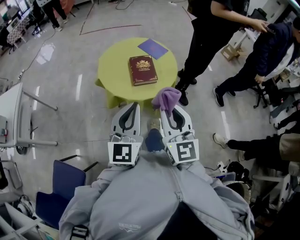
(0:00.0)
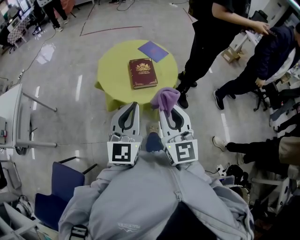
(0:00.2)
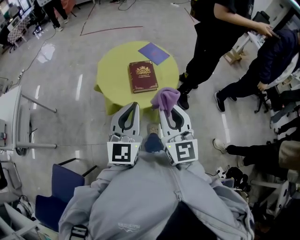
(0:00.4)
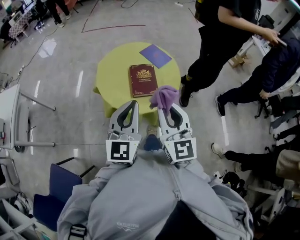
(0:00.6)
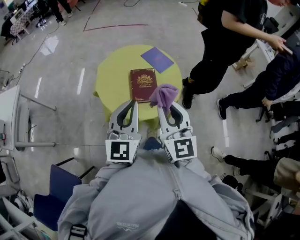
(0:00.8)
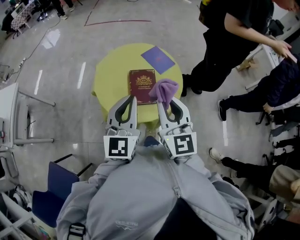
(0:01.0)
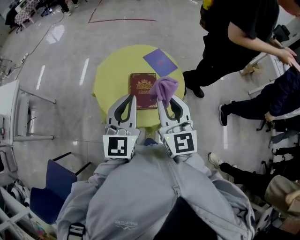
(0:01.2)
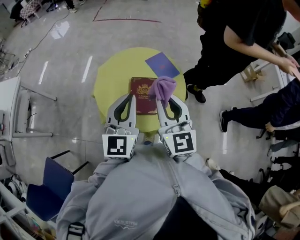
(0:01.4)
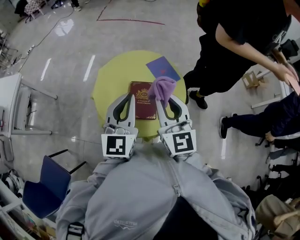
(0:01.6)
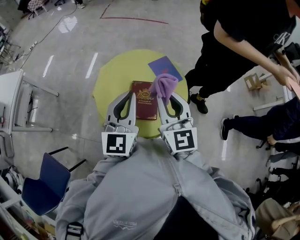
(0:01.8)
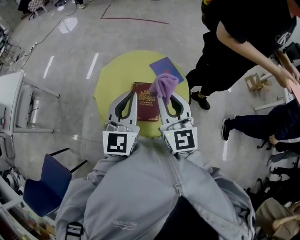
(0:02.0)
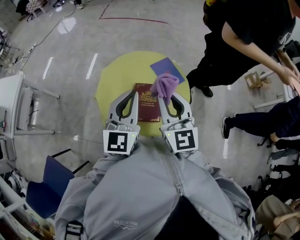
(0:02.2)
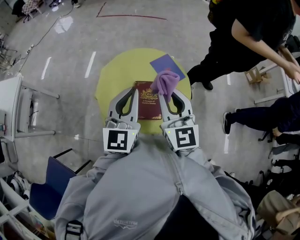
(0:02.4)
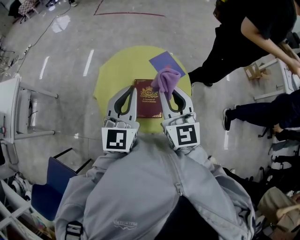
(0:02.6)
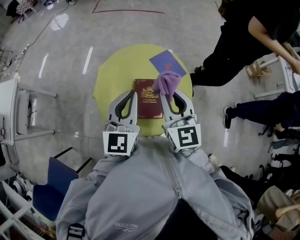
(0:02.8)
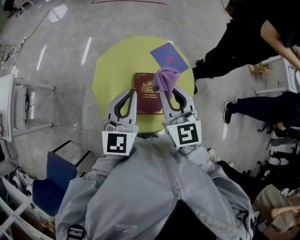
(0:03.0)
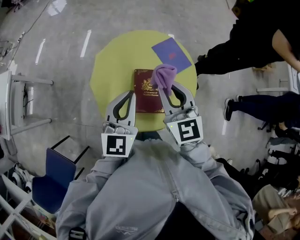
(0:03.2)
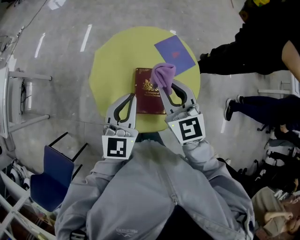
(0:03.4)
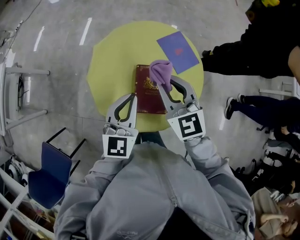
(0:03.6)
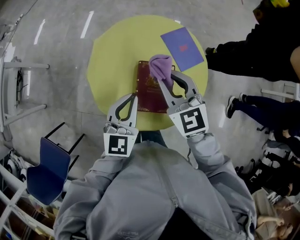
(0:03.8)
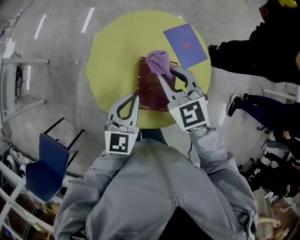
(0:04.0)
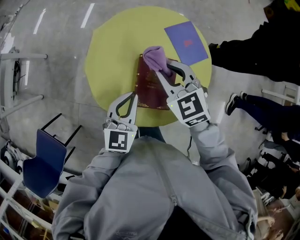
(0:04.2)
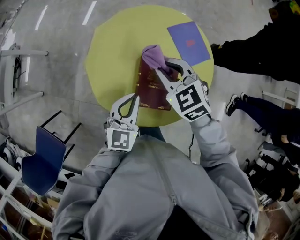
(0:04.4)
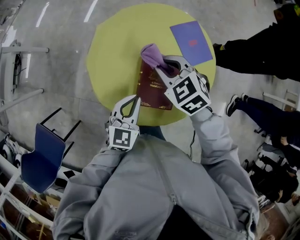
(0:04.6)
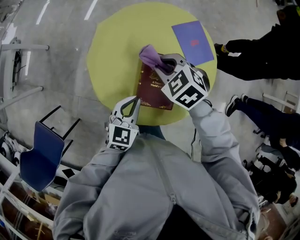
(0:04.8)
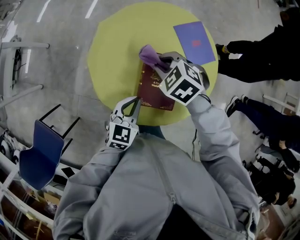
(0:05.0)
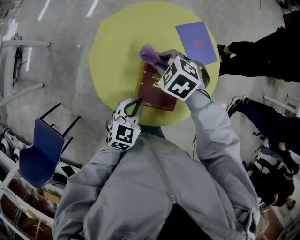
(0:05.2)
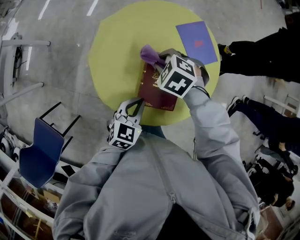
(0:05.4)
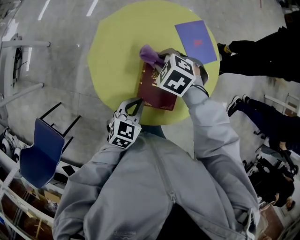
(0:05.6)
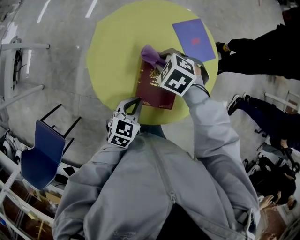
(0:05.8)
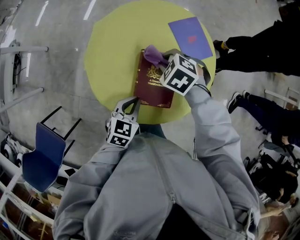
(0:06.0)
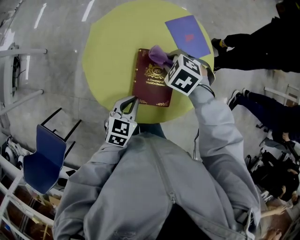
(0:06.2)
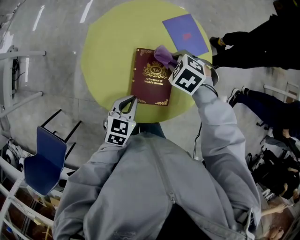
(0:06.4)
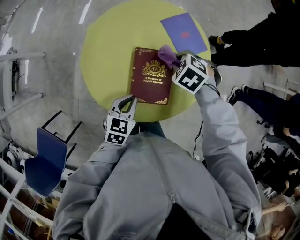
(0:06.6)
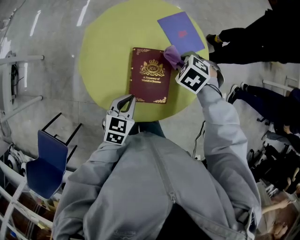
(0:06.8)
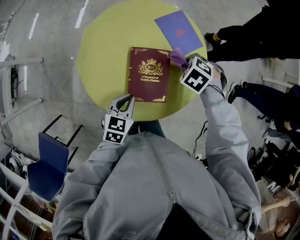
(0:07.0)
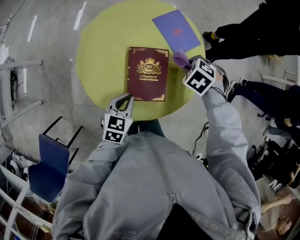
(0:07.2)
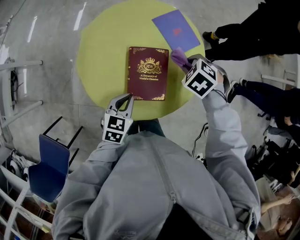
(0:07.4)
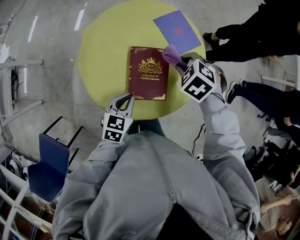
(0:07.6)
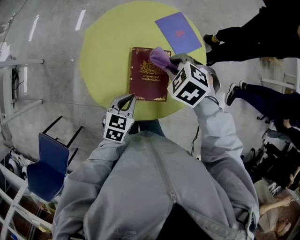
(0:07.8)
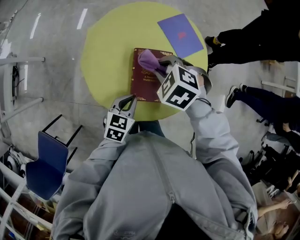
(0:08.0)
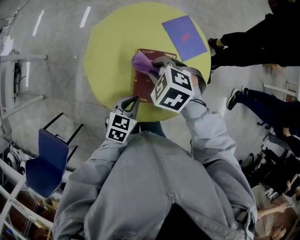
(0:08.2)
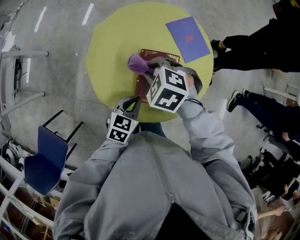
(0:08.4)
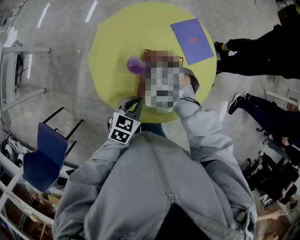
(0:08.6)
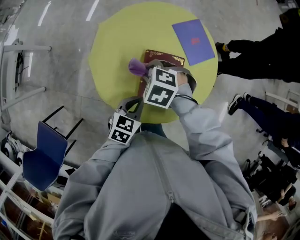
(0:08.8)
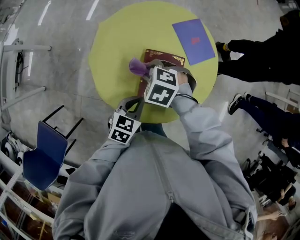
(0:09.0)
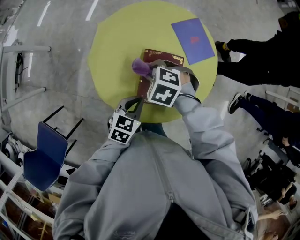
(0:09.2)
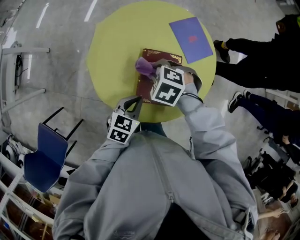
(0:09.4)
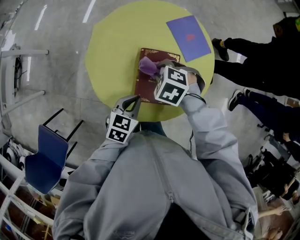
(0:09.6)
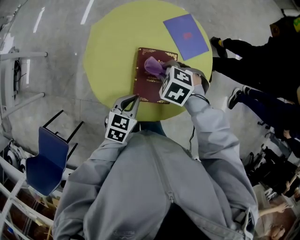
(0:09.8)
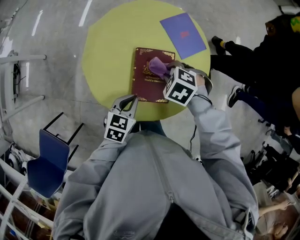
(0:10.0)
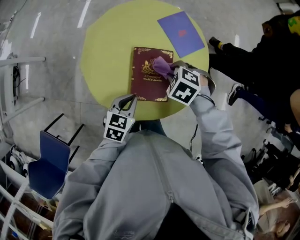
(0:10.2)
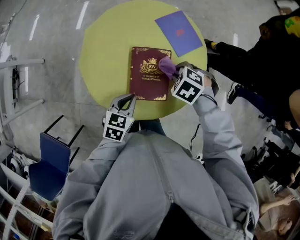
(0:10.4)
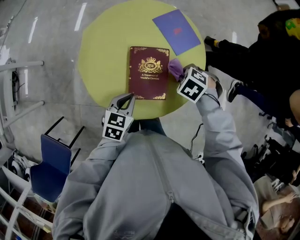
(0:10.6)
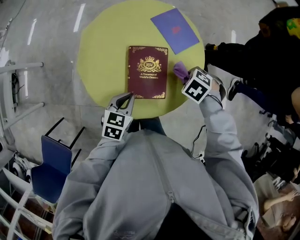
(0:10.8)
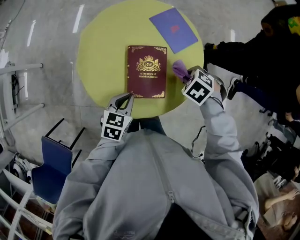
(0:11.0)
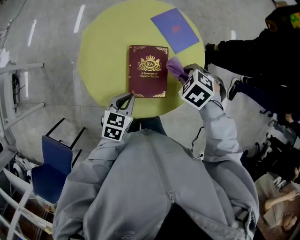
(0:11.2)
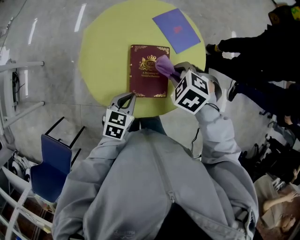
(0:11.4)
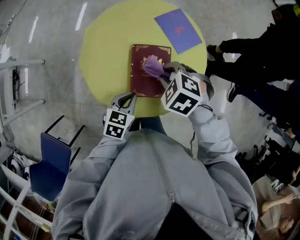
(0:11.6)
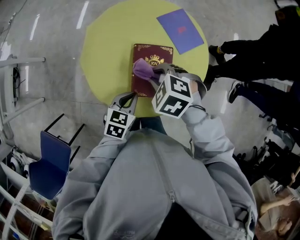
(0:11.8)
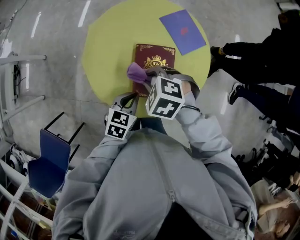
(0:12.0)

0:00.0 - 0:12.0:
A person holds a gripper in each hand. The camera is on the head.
0:00.0 - 0:01.6: Both grippers travel together forward, approximately 40 cm.
0:01.6 - 0:03.0: Both grippers travel together forward and downward, about 10 cm.
0:03.0 - 0:04.4: The left gripper shifts approximately 25 cm downward, and rotates approximately 20 degrees; the right gripper goes roughly 25 cm downward and forward, and turns by approximately 40 degrees.
0:04.4 - 0:06.0: The grippers both shift downward by approximately 10 cm. The left gripper rotates about 20 degrees. The right gripper turns by roughly 30 degrees.
0:06.0 - 0:07.6: The right gripper shifts by roughly 10 cm.
0:07.6 - 0:09.0: The right gripper travels to the left by roughly 15 cm, and rotates roughly 20 degrees.
0:09.0 - 0:10.4: The right gripper changes place by about 15 cm.
0:10.4 - 0:12.0: The right gripper shifts by about 15 cm.

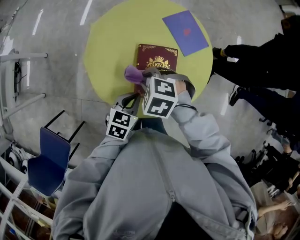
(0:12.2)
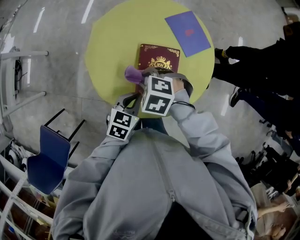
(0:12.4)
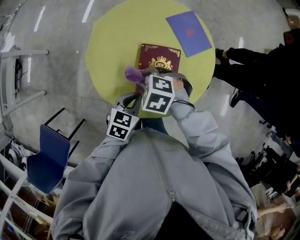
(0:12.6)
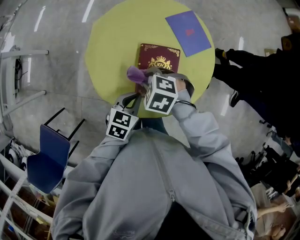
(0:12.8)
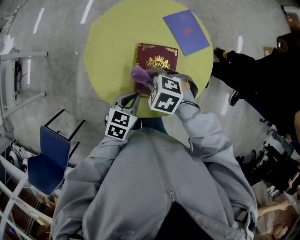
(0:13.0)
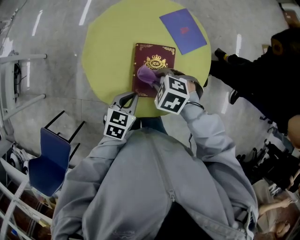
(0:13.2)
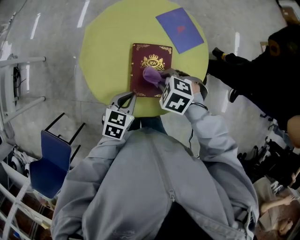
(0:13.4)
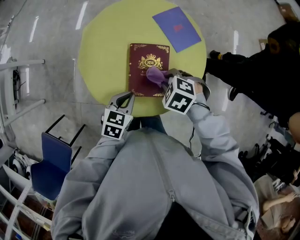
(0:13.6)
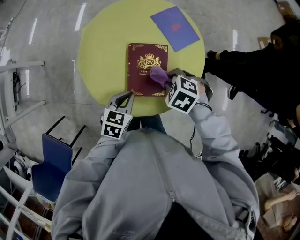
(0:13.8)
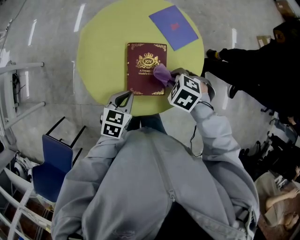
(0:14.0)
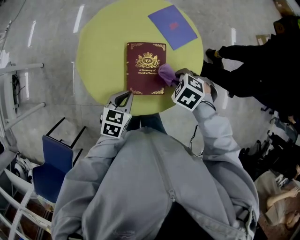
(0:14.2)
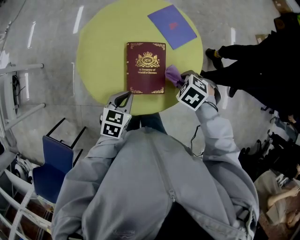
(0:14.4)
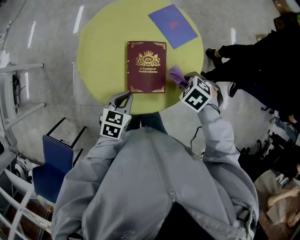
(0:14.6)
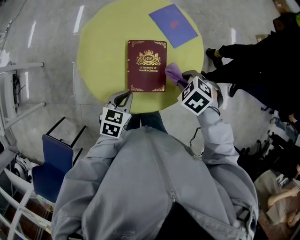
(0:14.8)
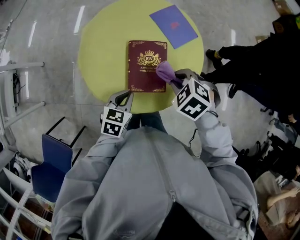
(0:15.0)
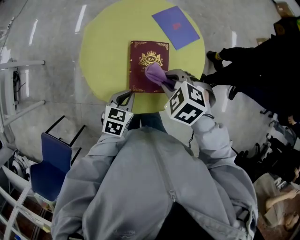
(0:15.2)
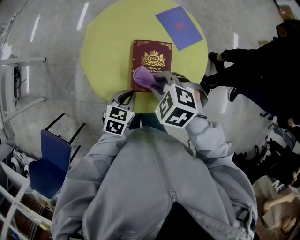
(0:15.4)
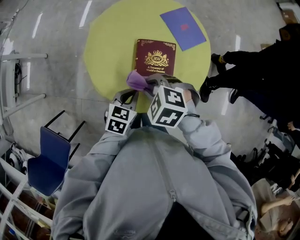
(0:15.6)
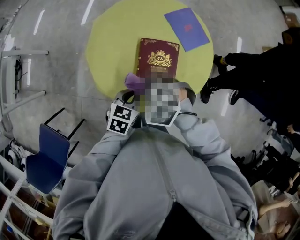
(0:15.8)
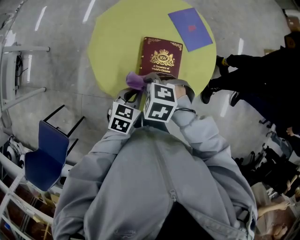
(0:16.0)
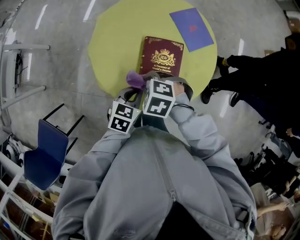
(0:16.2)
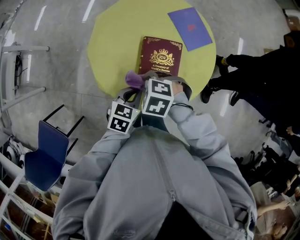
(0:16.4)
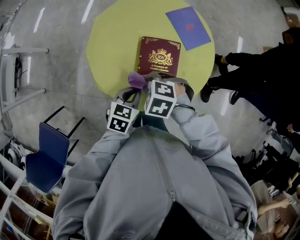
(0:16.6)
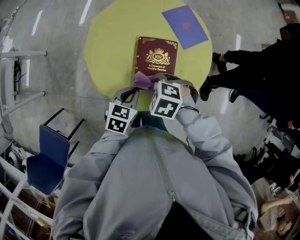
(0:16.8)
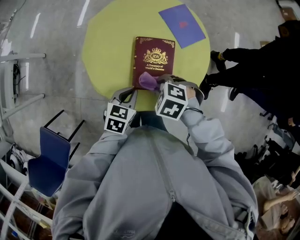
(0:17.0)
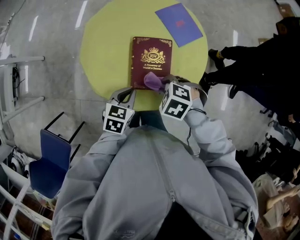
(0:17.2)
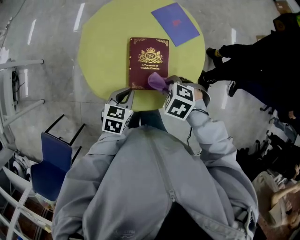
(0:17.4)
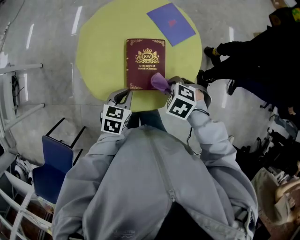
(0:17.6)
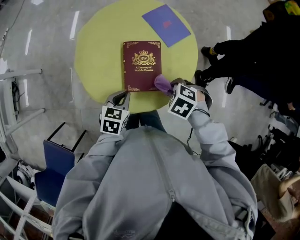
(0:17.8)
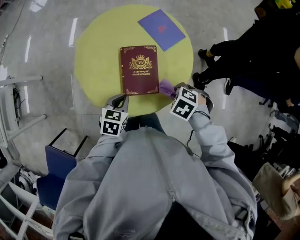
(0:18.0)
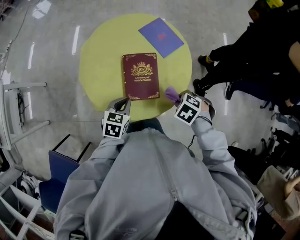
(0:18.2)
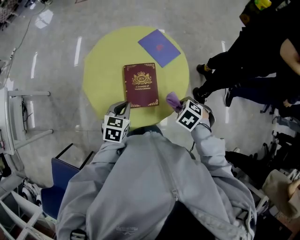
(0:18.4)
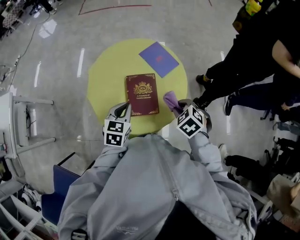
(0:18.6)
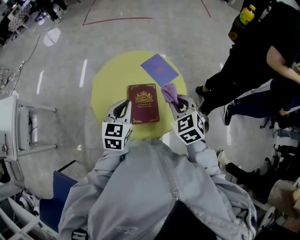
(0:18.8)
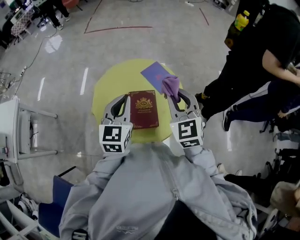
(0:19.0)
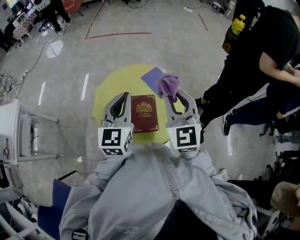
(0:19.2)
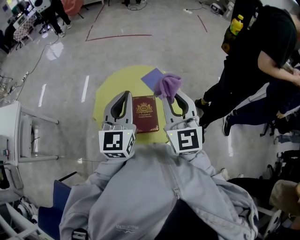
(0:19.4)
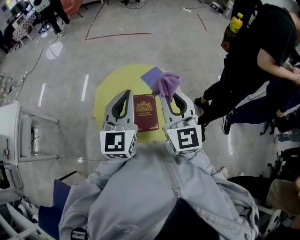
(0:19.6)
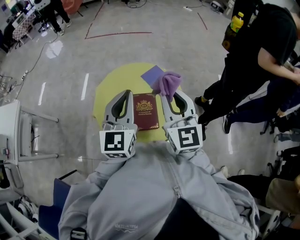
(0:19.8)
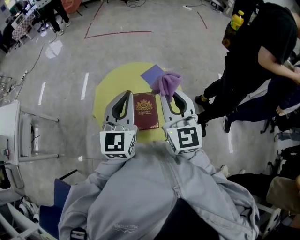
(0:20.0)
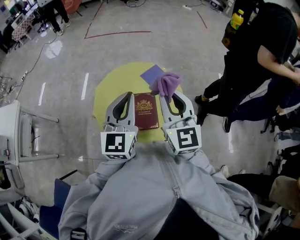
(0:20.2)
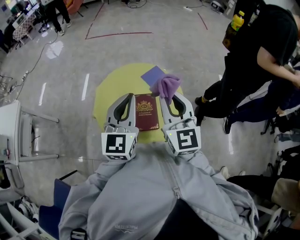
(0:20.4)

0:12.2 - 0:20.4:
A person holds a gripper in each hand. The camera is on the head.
0:12.2 - 0:13.8: The right gripper ends up some 15 cm from where it was.
0:13.8 - 0:15.4: The right gripper changes place by some 10 cm.
0:15.4 - 0:17.2: The right gripper moves downward, approximately 10 cm.
0:17.2 - 0:18.8: The grippers both shift upward by about 25 cm. The left gripper swivels roughly 30 degrees, while the right gripper tips its fingers upward by roughly 30 degrees.
0:18.8 - 0:20.4: The grippers both shift upward by some 15 cm. The left gripper rotates some 30 degrees; the right gripper tilts its fingers roughly 40 degrees upward.

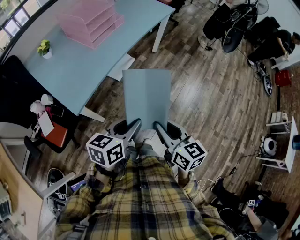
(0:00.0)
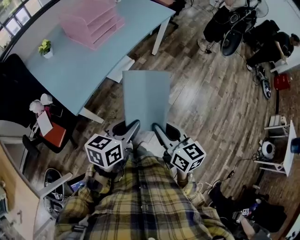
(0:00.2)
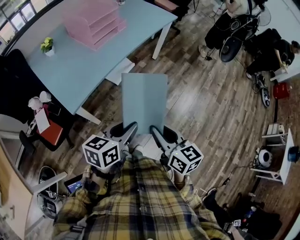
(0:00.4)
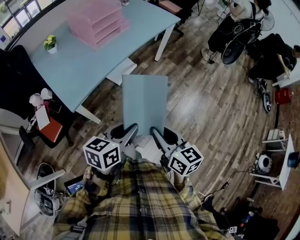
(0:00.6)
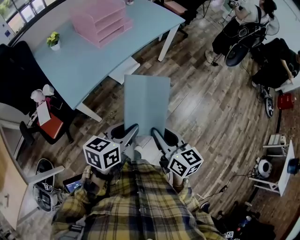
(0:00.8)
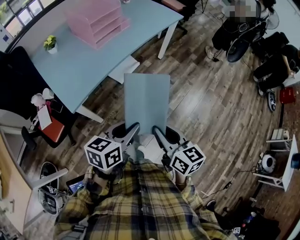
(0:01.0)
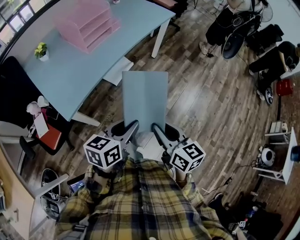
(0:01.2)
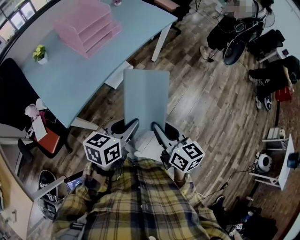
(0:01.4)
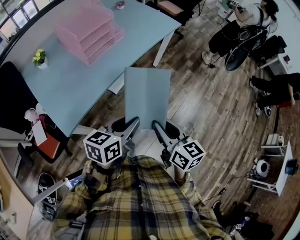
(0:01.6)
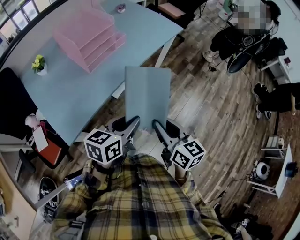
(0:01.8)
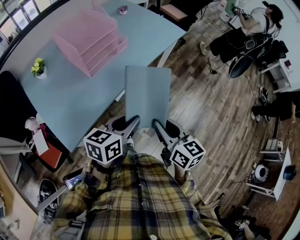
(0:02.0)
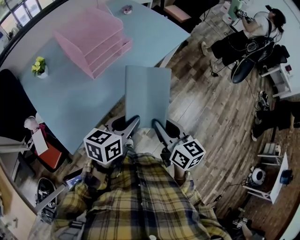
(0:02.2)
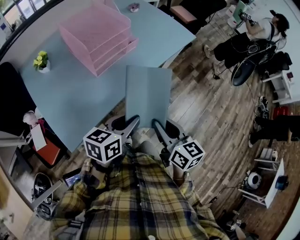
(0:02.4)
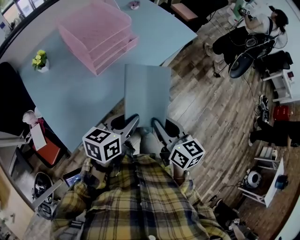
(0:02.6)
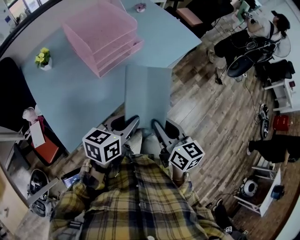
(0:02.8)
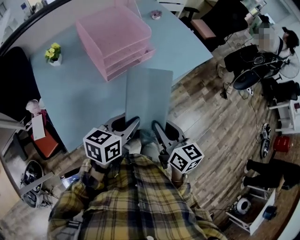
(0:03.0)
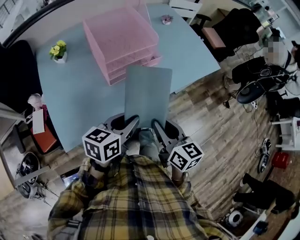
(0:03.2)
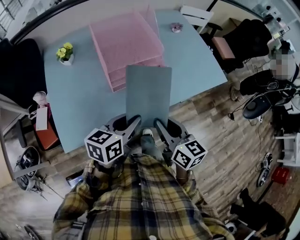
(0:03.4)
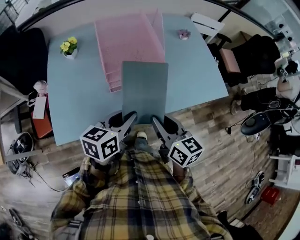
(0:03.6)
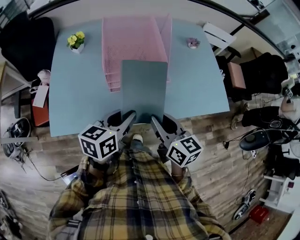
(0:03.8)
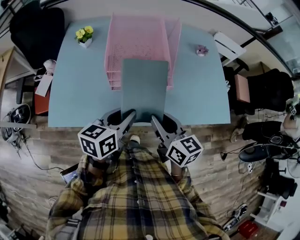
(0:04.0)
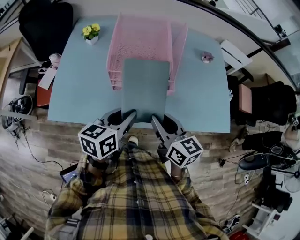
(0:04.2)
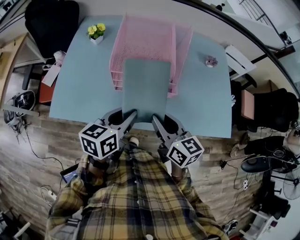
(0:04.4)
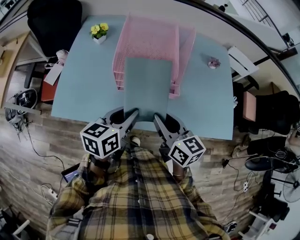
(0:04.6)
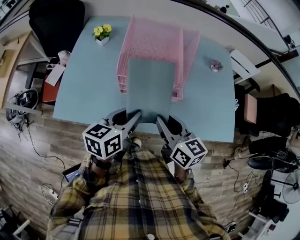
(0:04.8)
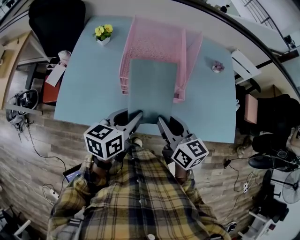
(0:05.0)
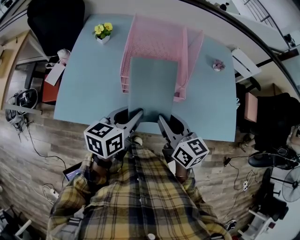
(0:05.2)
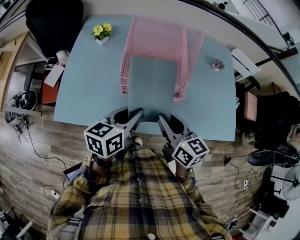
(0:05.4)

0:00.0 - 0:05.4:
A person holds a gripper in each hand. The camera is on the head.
0:00.0 - 0:01.4: Both grippers travel together forward, roughly 10 cm.
0:01.4 - 0:02.8: The two grippers go approximately 25 cm forward and to the left.
0:02.8 - 0:04.0: The right gripper ends up approximately 25 cm from where it was, and rotates approximately 40 degrees, while the left gripper changes place by roughly 20 cm, and turns by about 40 degrees.
0:04.0 - 0:05.4: The right gripper moves about 5 cm.
